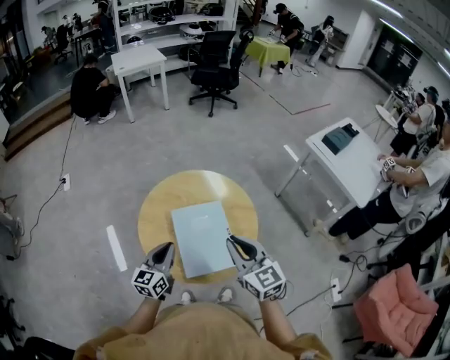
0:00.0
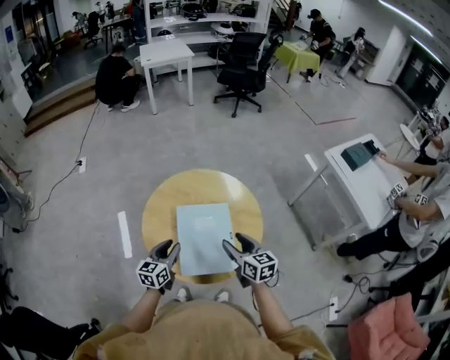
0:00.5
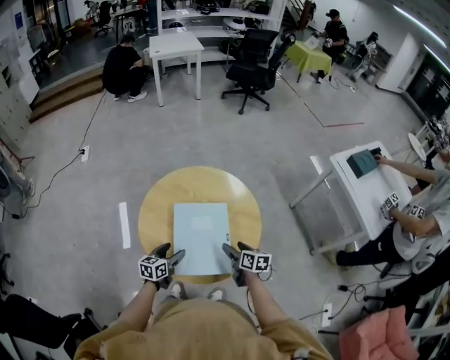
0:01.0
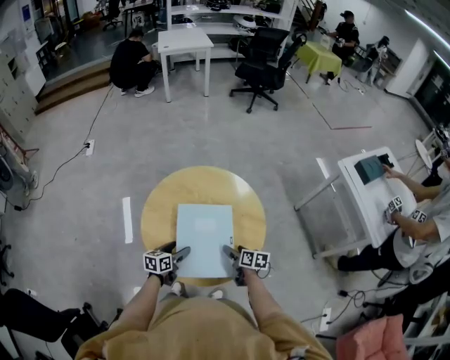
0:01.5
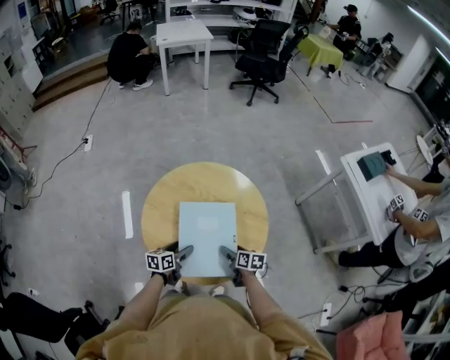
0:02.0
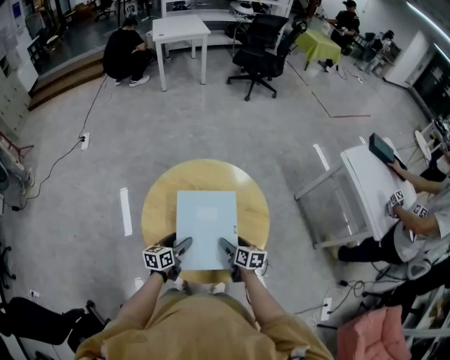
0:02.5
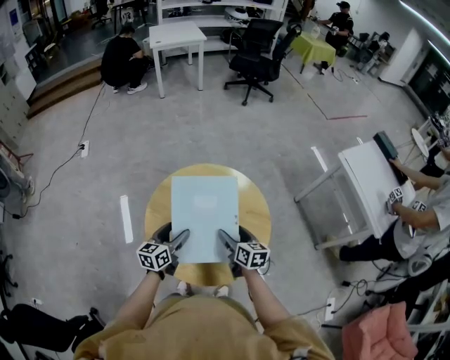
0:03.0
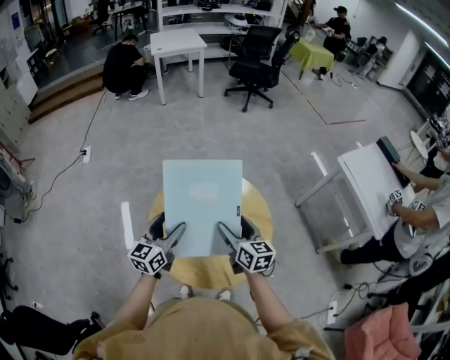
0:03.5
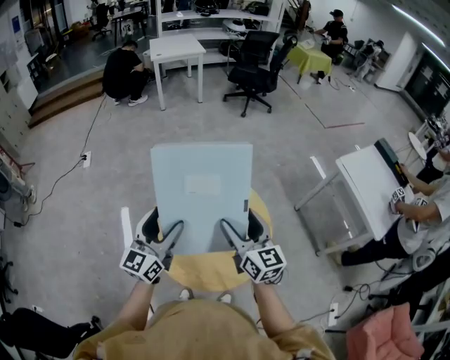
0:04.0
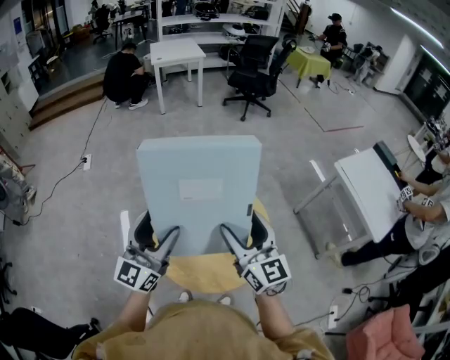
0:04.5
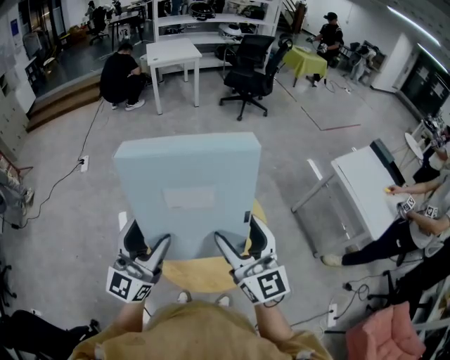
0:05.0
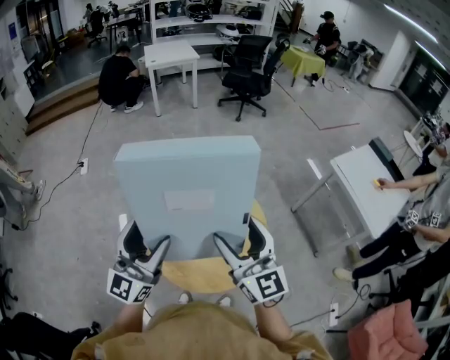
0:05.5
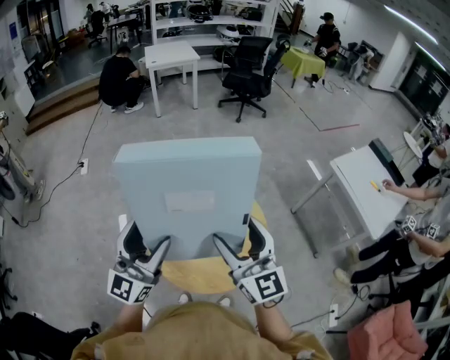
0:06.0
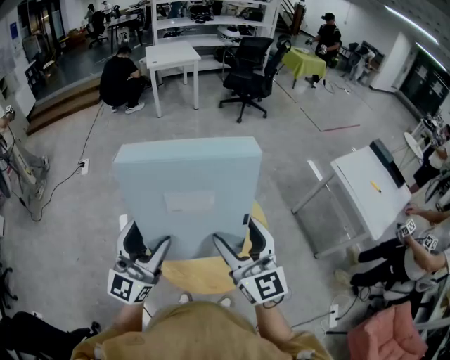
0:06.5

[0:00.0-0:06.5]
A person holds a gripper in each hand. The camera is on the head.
0:00.0 to 0:02.0: The left gripper shifts approximately 20 cm downward, changes its angle by some 40 degrees, and opens, while the right gripper moves downward, about 35 cm, tips its fingers downward by approximately 30 degrees, and opens its fingers.
0:02.0 to 0:04.5: Both grippers move upward, some 40 cm. The right gripper tilts its fingers about 50 degrees upward. Meanwhile the left gripper tilts its fingers about 50 degrees upward.
0:04.5 to 0:06.5: The right gripper ends up about 5 cm from where it was.

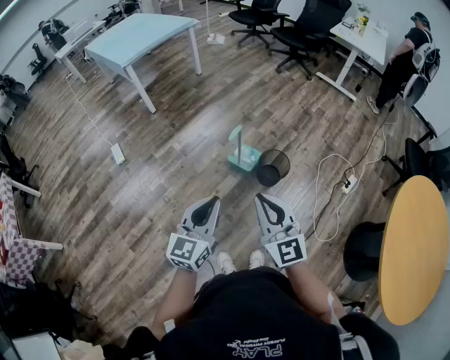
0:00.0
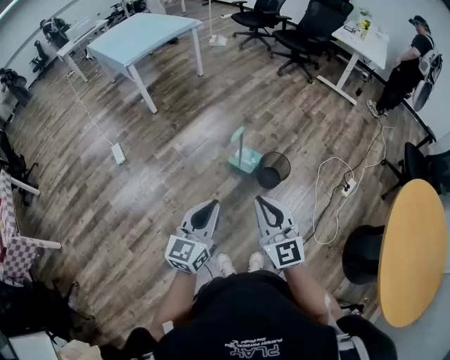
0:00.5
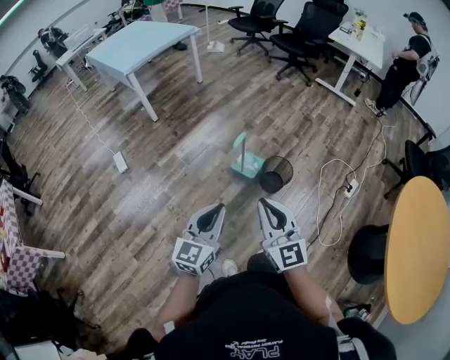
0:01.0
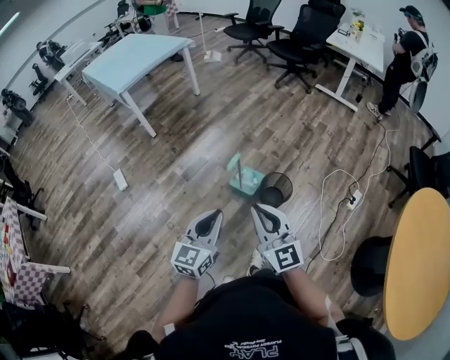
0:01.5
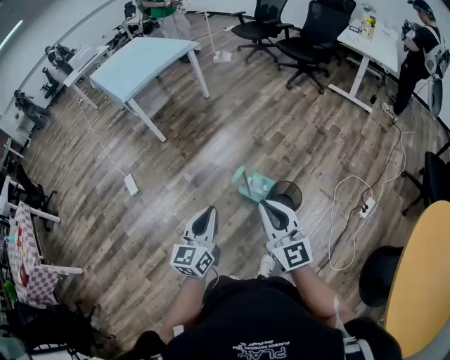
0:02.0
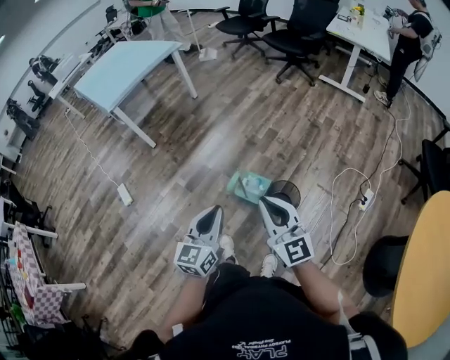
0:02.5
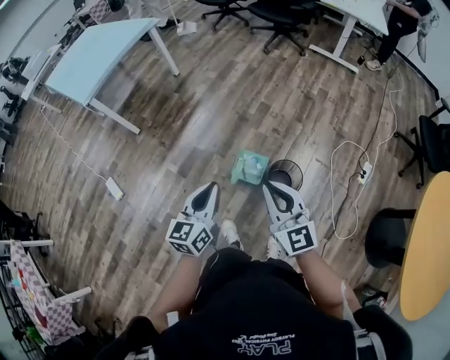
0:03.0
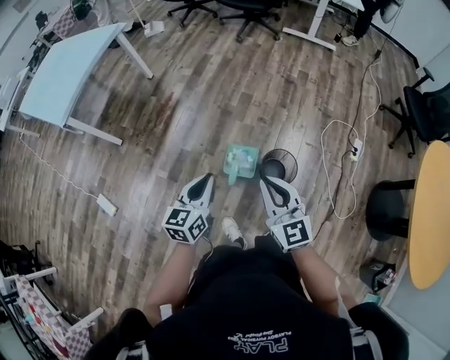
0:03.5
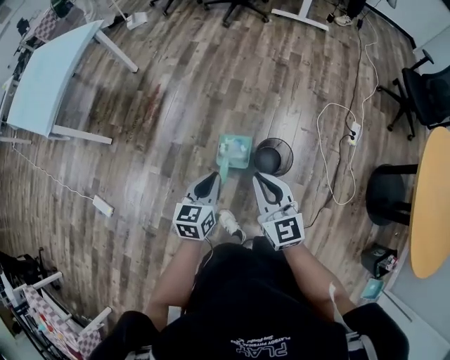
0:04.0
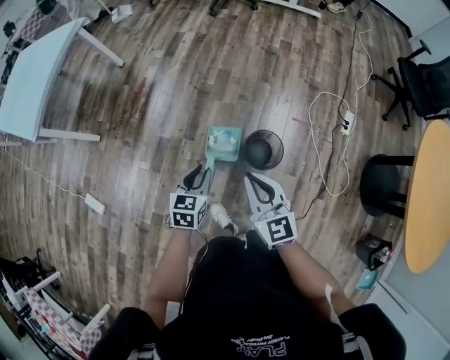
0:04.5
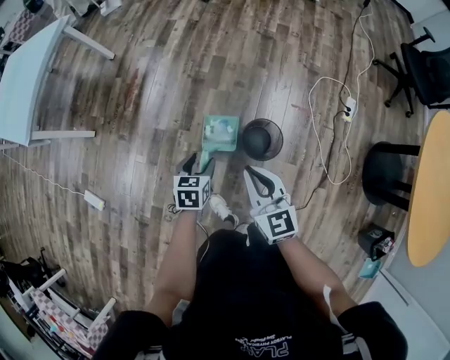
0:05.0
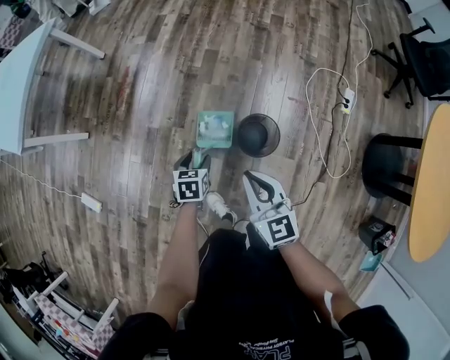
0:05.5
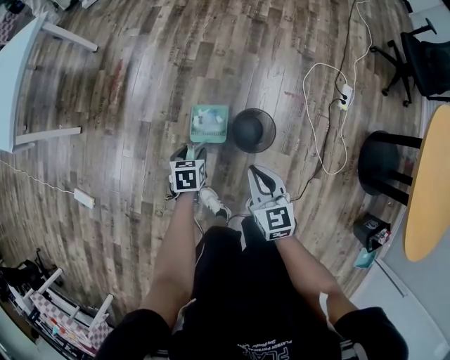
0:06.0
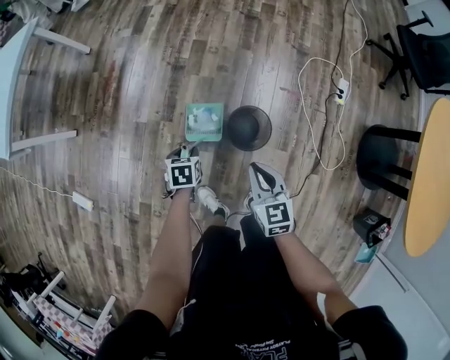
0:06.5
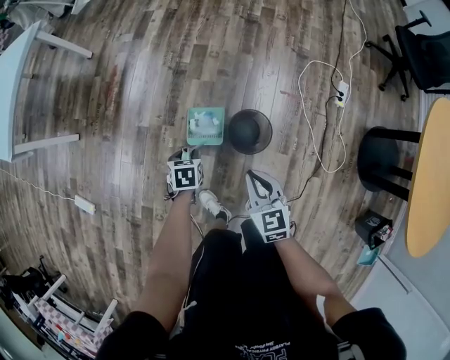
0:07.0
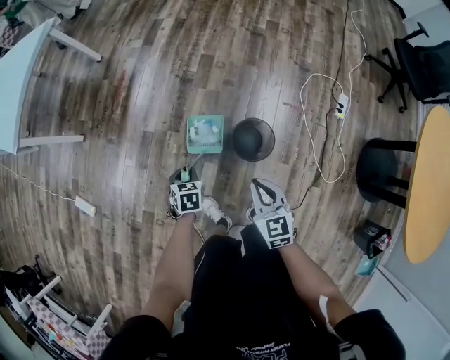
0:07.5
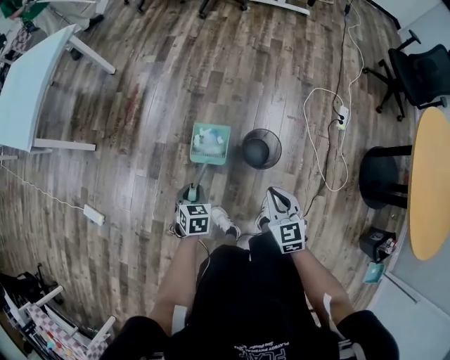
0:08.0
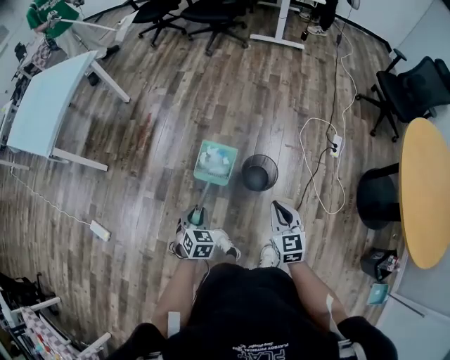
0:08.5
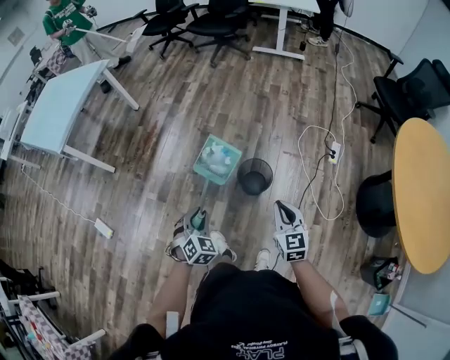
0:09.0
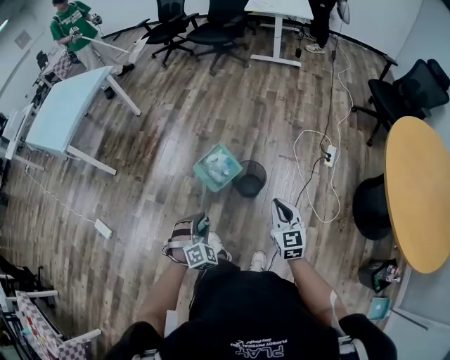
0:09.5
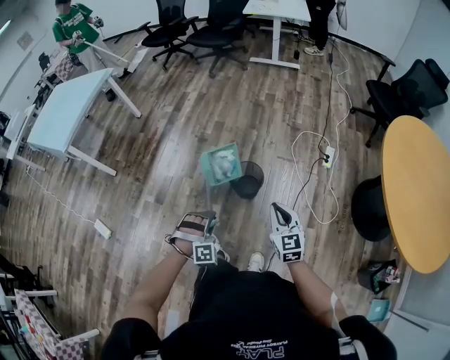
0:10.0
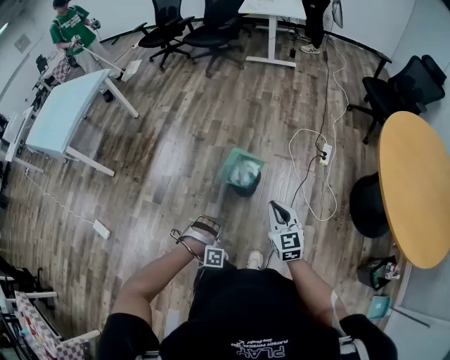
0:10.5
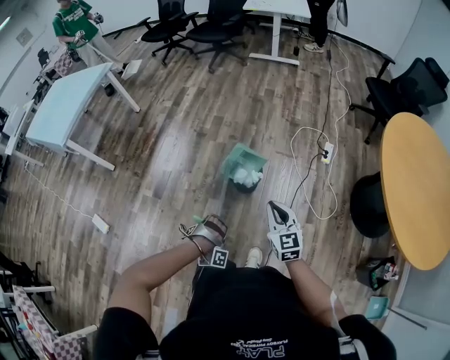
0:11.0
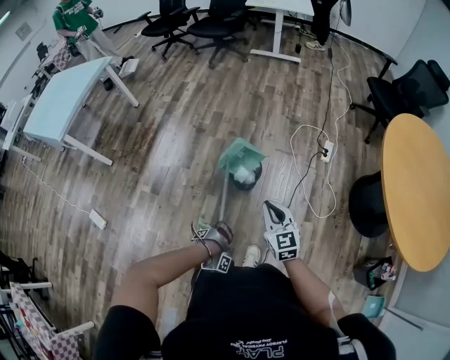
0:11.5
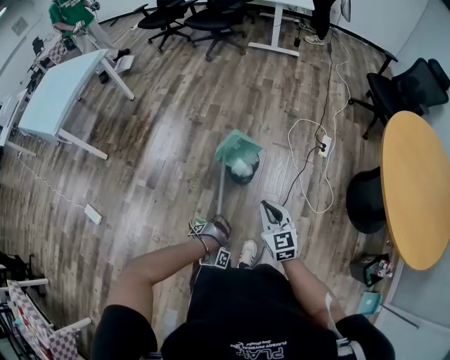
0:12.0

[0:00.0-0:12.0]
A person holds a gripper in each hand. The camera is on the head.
0:00.0 to 0:02.0: The grippers both shift forward by roughly 20 cm.
0:02.0 to 0:04.0: The left gripper moves some 30 cm, and swivels about 40 degrees; the right gripper ends up about 25 cm from where it was, and rotates approximately 30 degrees.
0:04.0 to 0:06.0: The right gripper is displaced downward and to the right by about 20 cm, and swivels some 20 degrees. The left gripper shifts approximately 20 cm downward, points its fingers some 30 degrees further downward, and opens up.
0:06.0 to 0:08.0: The right gripper travels backward by some 10 cm. The left gripper travels backward, to the left and upward by about 15 cm, and closes its fingers.
0:08.0 to 0:10.0: The left gripper moves backward, to the right and upward, about 30 cm, and rolls clockwise, seen from behind, by approximately 80 degrees; the right gripper shifts approximately 25 cm to the right, backward and upward.
0:10.0 to 0:12.0: The left gripper is displaced downward and backward by approximately 15 cm, and rolls clockwise, seen from behind, by some 60 degrees.

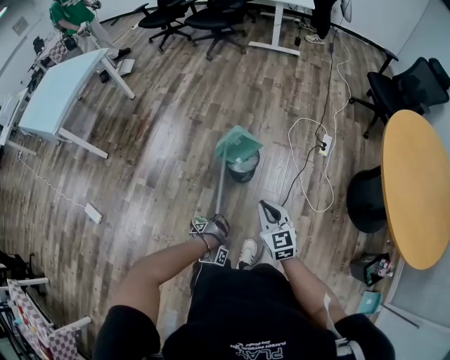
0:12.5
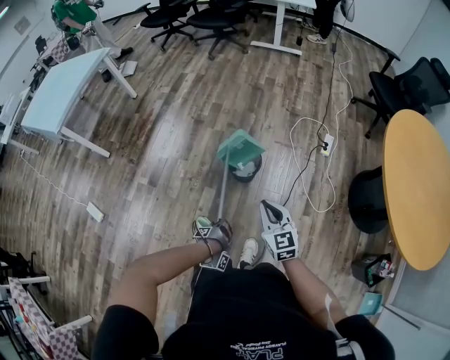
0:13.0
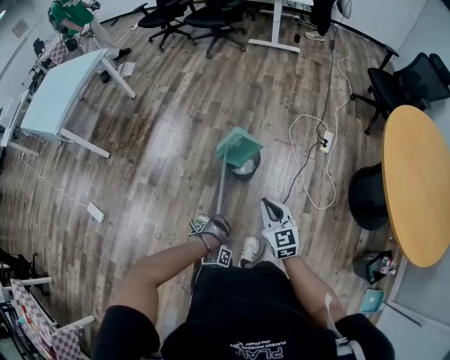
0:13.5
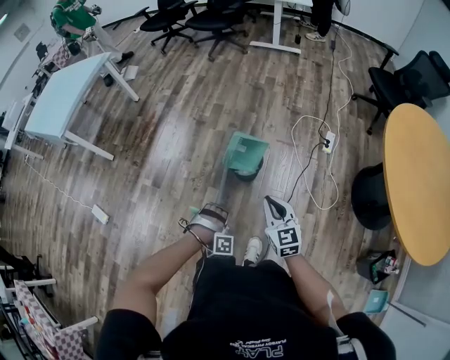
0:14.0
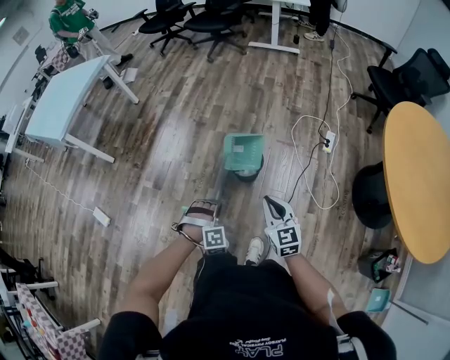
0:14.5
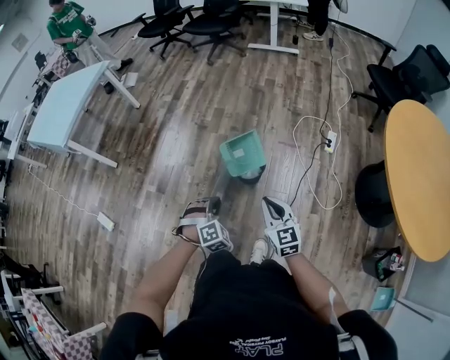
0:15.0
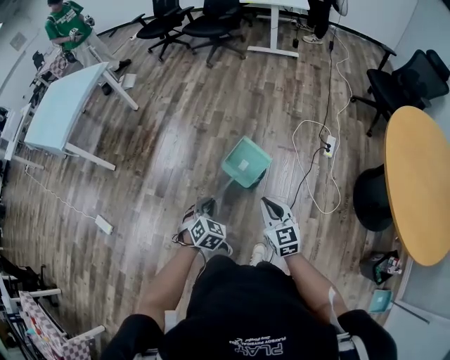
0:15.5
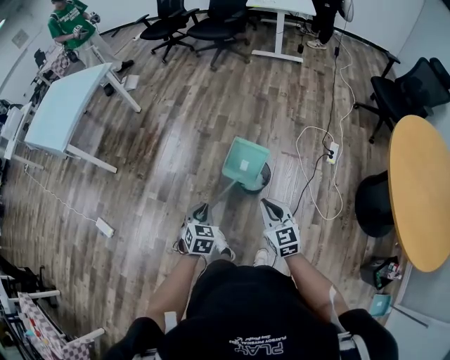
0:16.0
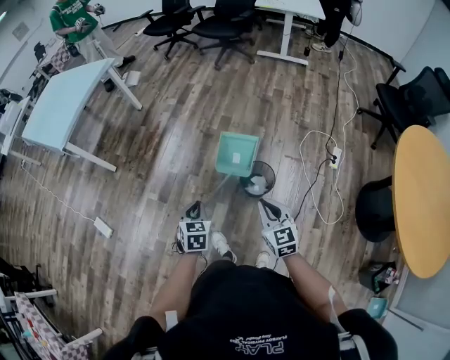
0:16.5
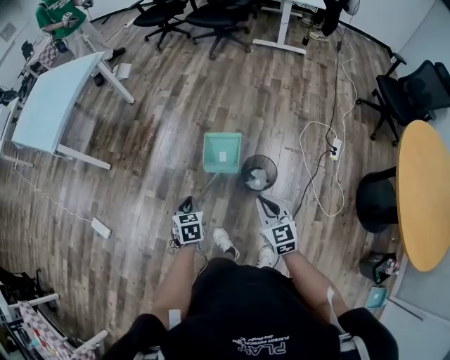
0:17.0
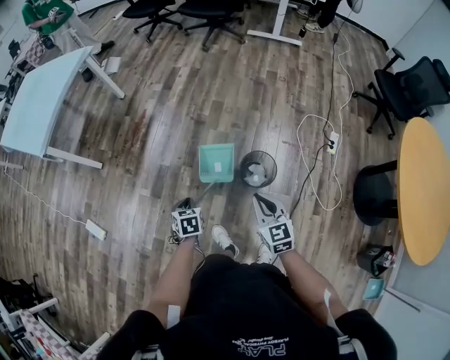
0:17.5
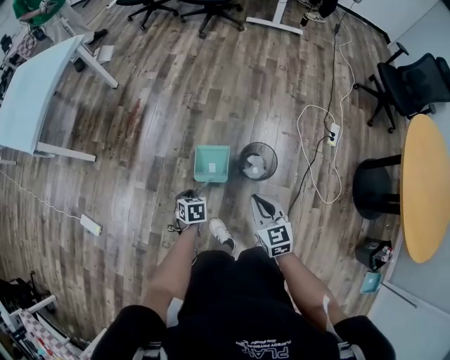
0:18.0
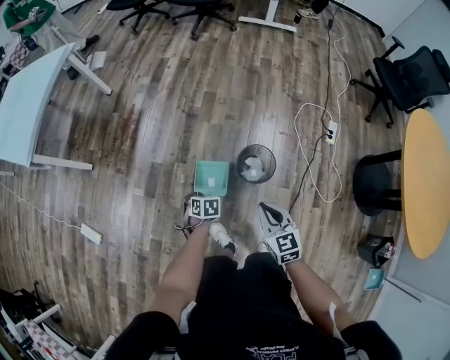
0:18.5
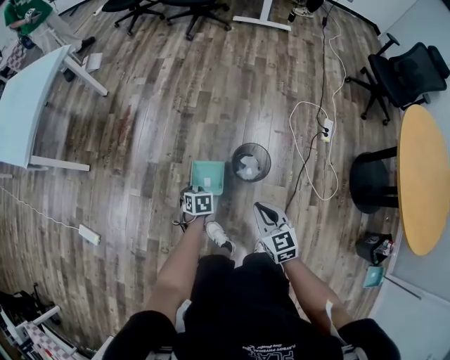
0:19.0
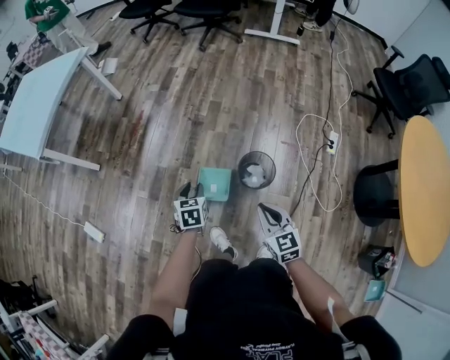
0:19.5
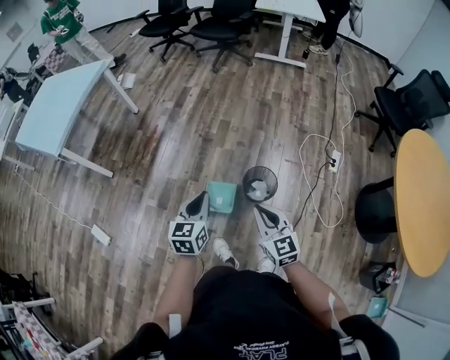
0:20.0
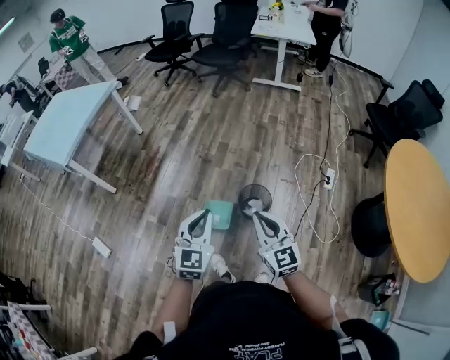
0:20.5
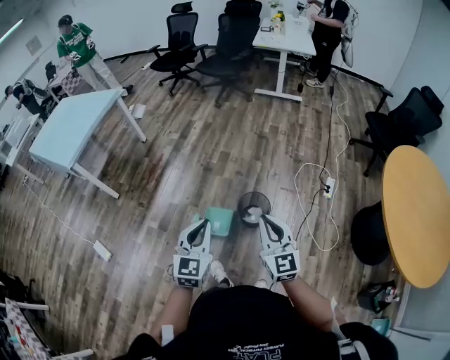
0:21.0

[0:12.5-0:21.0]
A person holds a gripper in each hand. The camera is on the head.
0:12.5 to 0:14.5: The left gripper heads upward, covering some 10 cm, rotates around the line of its fingers by some 60 degrees, counterclockwise from behind, and closes.
0:14.5 to 0:16.5: The left gripper heads to the left and forward, covering approximately 20 cm, and rolls counterclockwise, seen from behind, by some 80 degrees, while the right gripper travels forward and to the left by approximately 15 cm.
0:16.5 to 0:19.0: The left gripper shifts some 25 cm downward and forward, and changes its angle by some 30 degrees. The right gripper goes about 10 cm downward.
0:19.0 to 0:21.0: The left gripper moves upward and backward, about 40 cm, and points its fingers some 50 degrees further upward; the right gripper is displaced upward by some 20 cm, and turns by approximately 30 degrees.
